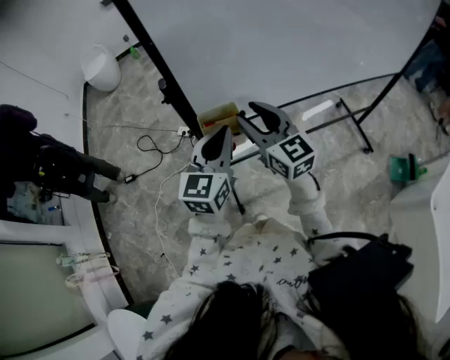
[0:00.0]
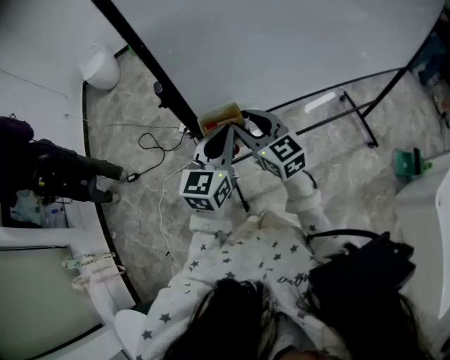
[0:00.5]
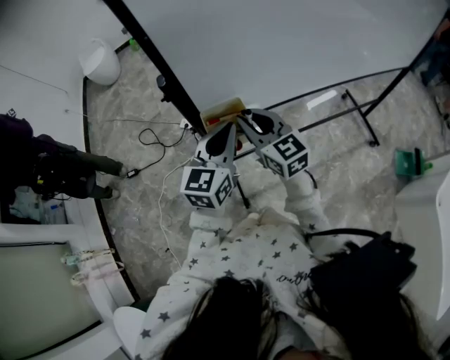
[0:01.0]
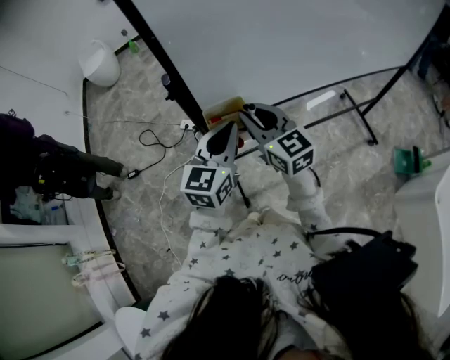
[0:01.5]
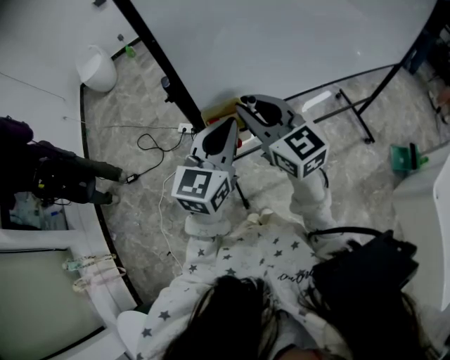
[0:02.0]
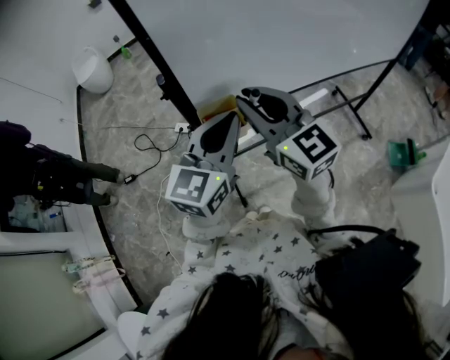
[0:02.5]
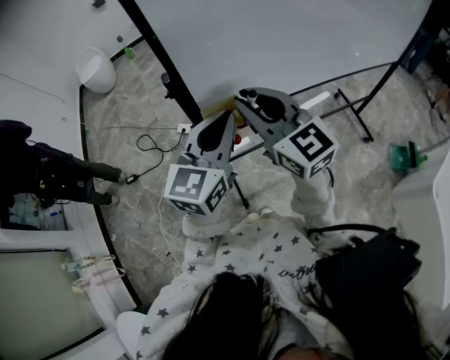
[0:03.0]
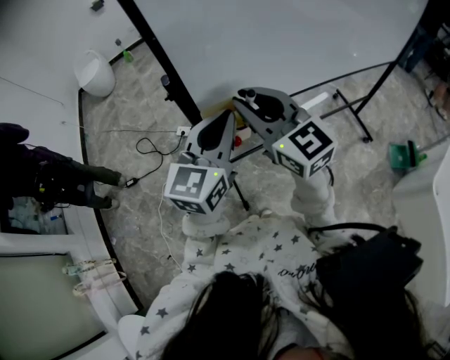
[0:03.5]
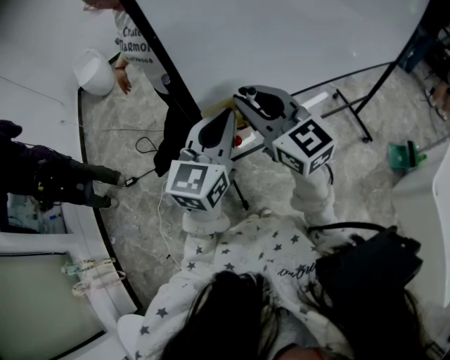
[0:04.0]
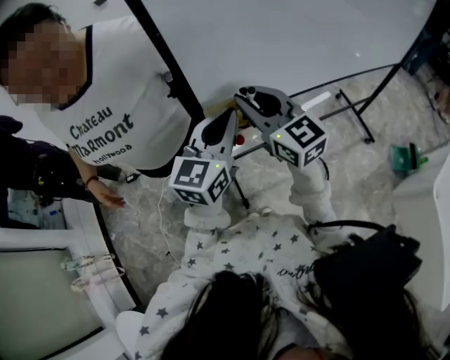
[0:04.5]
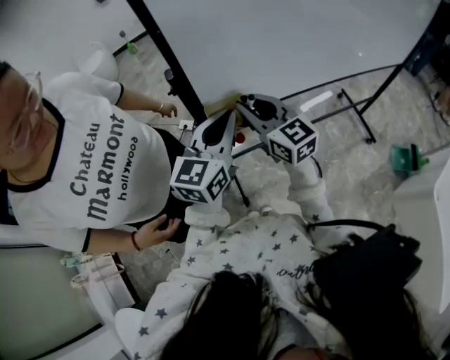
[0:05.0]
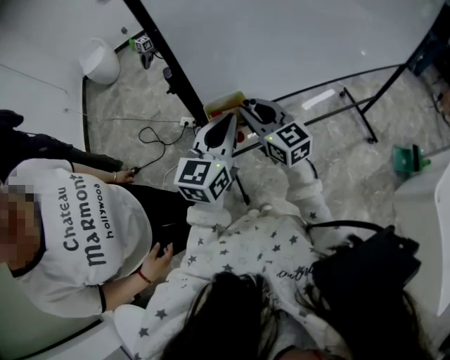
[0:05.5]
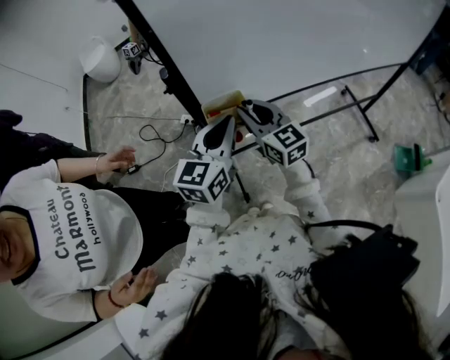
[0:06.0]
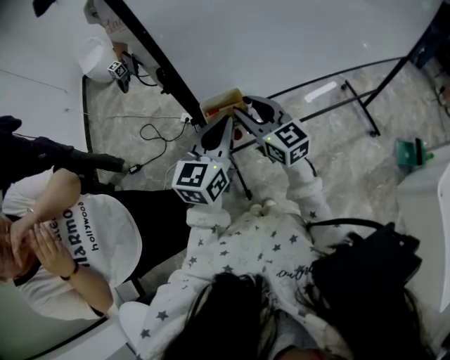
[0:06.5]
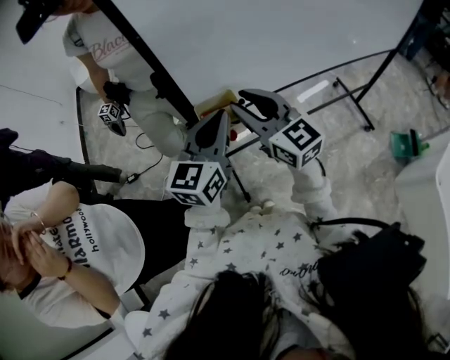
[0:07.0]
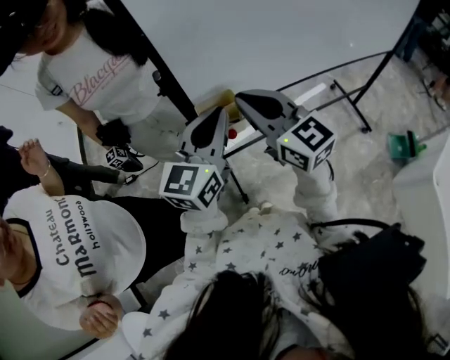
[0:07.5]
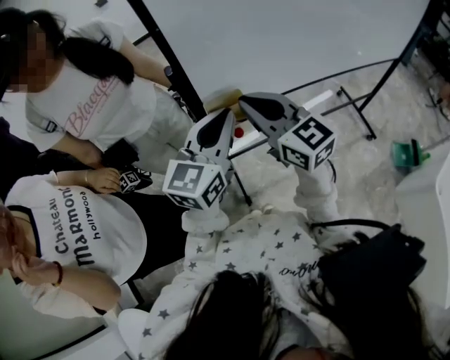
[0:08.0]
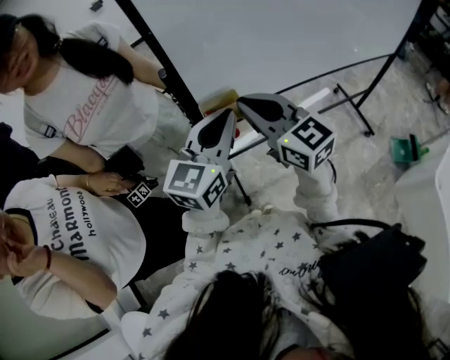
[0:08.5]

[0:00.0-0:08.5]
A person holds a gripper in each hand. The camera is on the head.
0:00.0 to 0:02.0: The right gripper goes approximately 5 cm upward, and closes its fingers.
0:02.0 to 0:04.0: The grippers move only a little.
0:04.0 to 0:06.5: The left gripper heads downward, covering roughly 5 cm; the right gripper moves downward, some 10 cm.
0:06.5 to 0:08.5: The left gripper ends up roughly 5 cm from where it was. Meanwhile the right gripper travels upward by roughly 10 cm, and closes up.

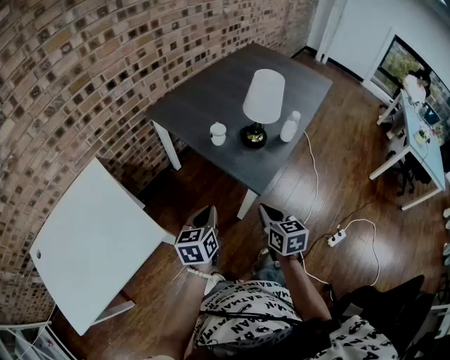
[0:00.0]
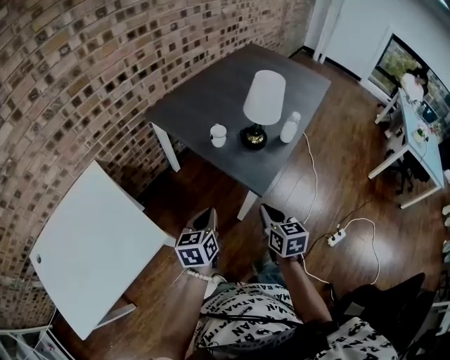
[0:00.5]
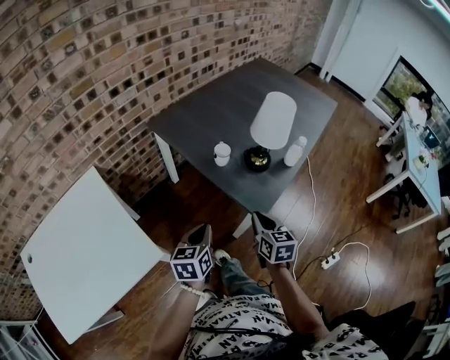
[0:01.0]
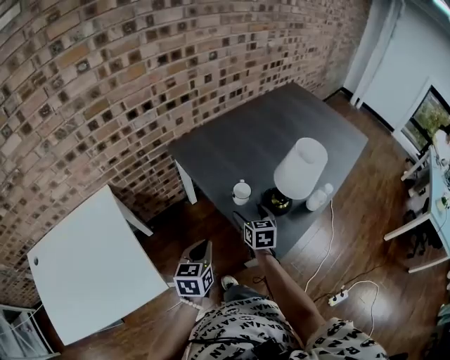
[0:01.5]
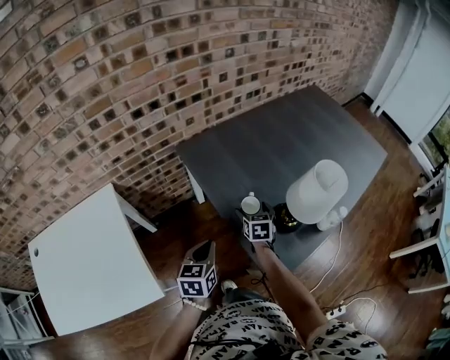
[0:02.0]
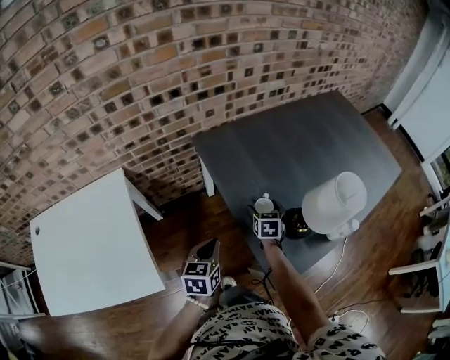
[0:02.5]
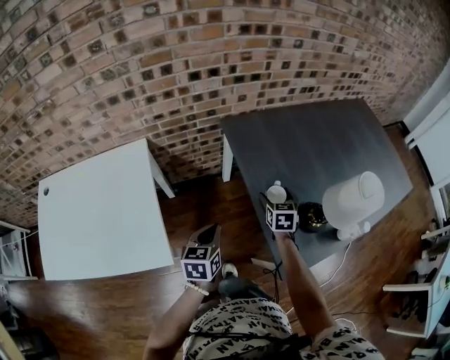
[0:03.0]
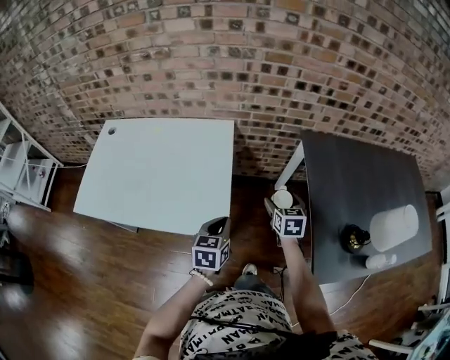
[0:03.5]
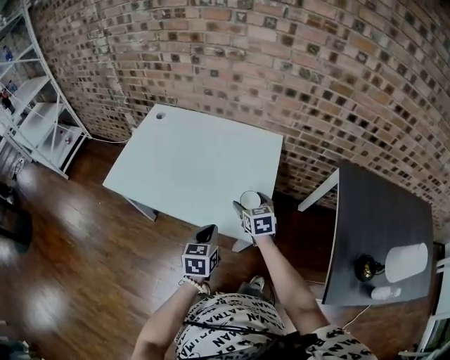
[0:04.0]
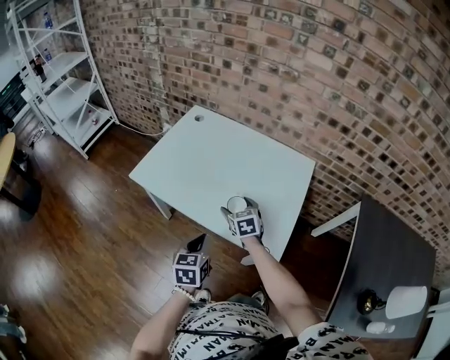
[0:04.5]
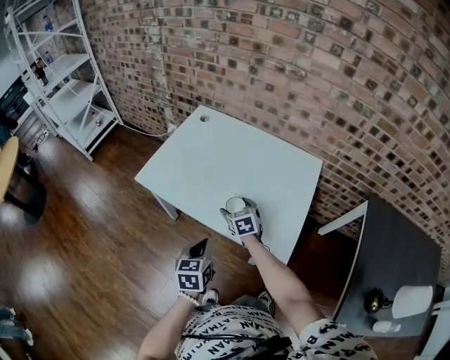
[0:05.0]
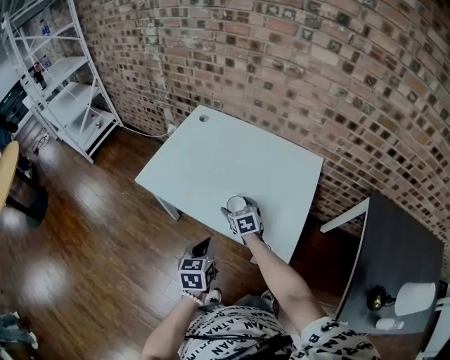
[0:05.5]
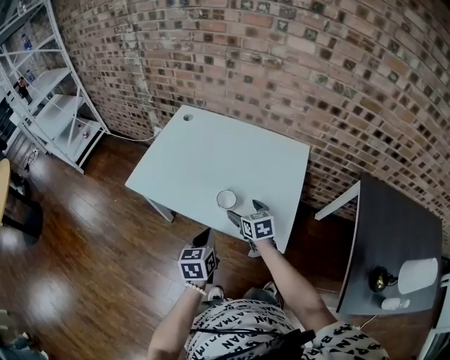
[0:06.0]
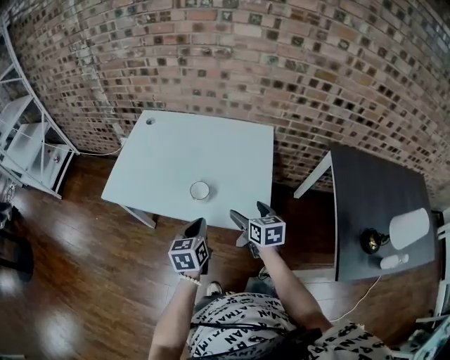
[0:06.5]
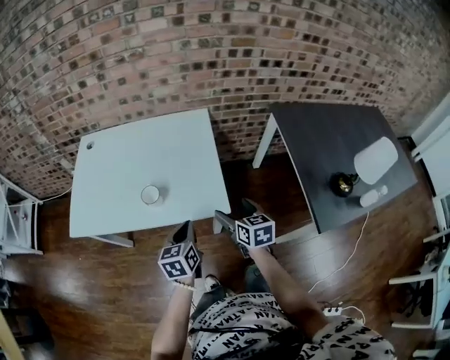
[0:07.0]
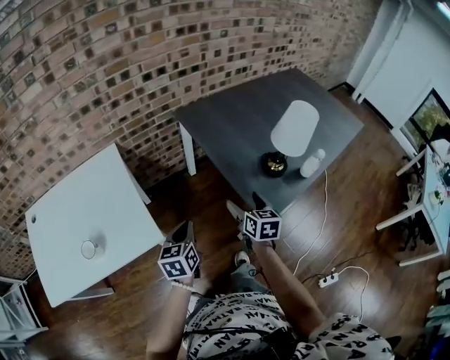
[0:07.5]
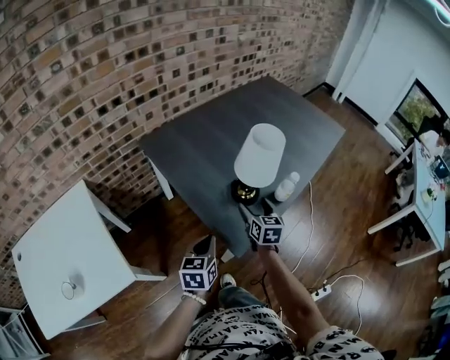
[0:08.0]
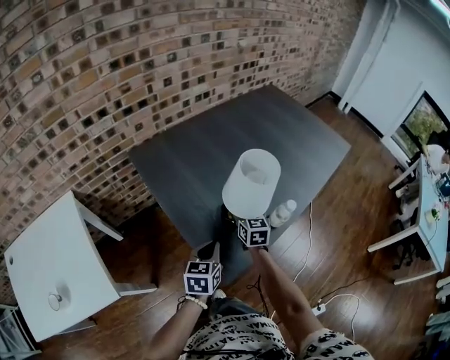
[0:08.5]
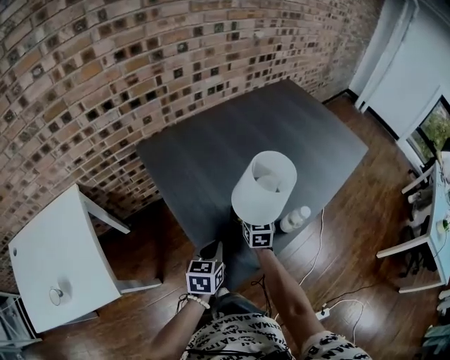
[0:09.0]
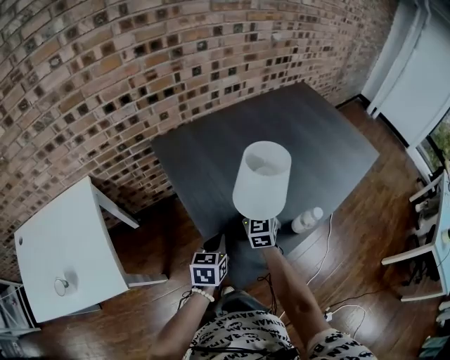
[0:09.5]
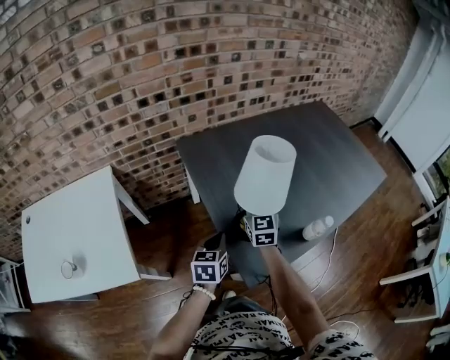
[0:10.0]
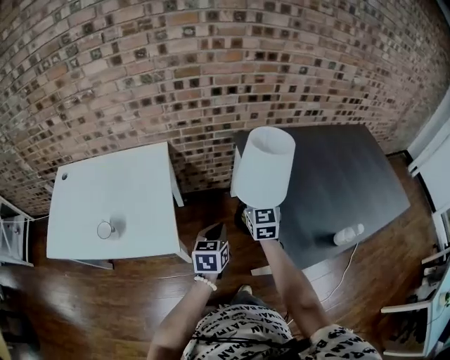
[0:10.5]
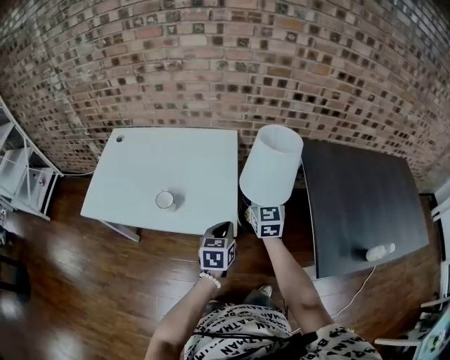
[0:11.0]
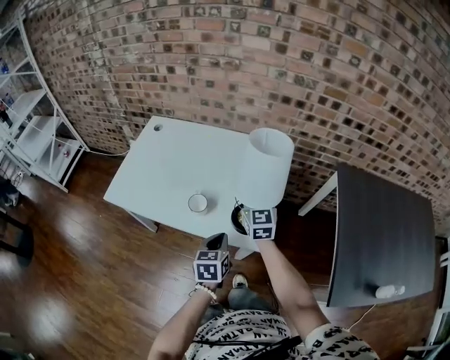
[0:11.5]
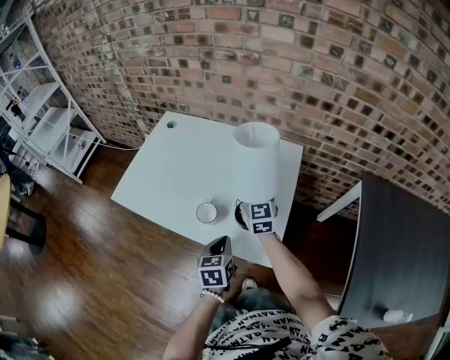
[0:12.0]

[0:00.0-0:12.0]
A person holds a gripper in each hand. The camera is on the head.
0:00.0 to 0:02.0: The left gripper travels forward by roughly 20 cm. Meanwhile the right gripper heads forward, covering approximately 40 cm, and opens up.
0:02.0 to 0:04.0: The pair of grippers is taken approximately 50 cm. The left gripper swivels some 50 degrees; the right gripper changes its angle by about 60 degrees.
0:04.0 to 0:06.0: The two grippers go roughly 15 cm to the left.
0:06.0 to 0:08.0: The pair of grippers is taken approximately 70 cm. The left gripper swivels approximately 70 degrees. Meanwhile the right gripper rotates some 80 degrees.
0:08.0 to 0:10.0: The left gripper travels forward by roughly 10 cm. The right gripper moves to the left, forward and upward, about 20 cm, turns by some 30 degrees, and closes its fingers.
0:10.0 to 0:12.0: The two grippers travel together, some 70 cm. The right gripper turns by approximately 50 degrees; the left gripper swivels approximately 50 degrees.

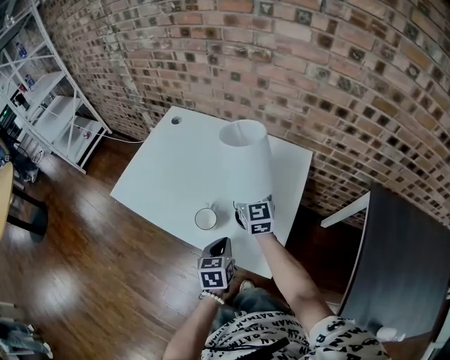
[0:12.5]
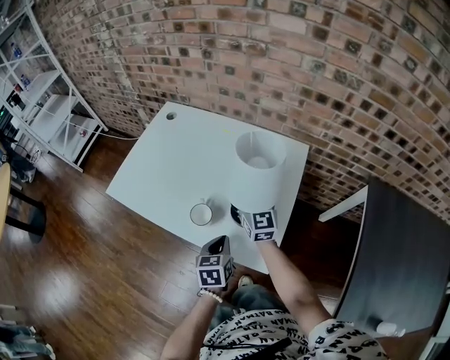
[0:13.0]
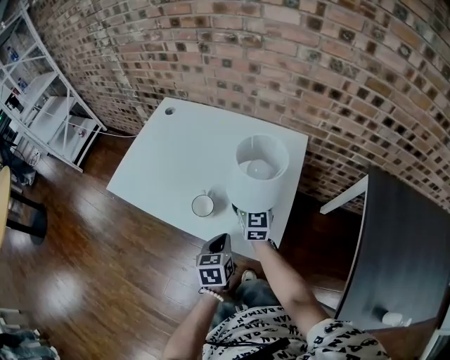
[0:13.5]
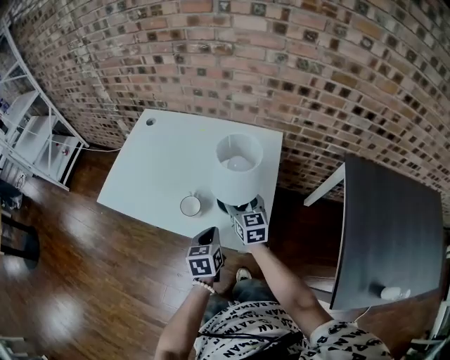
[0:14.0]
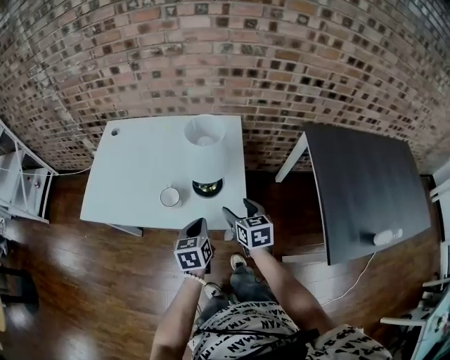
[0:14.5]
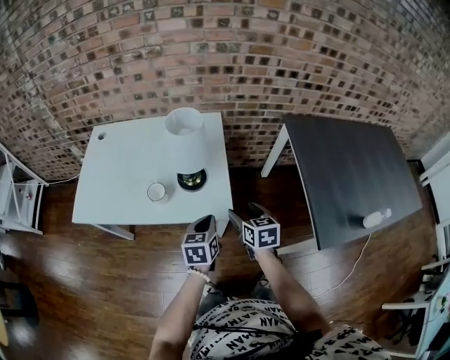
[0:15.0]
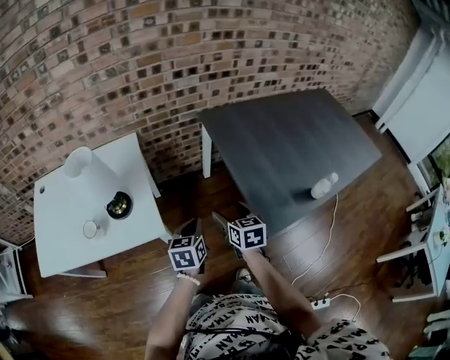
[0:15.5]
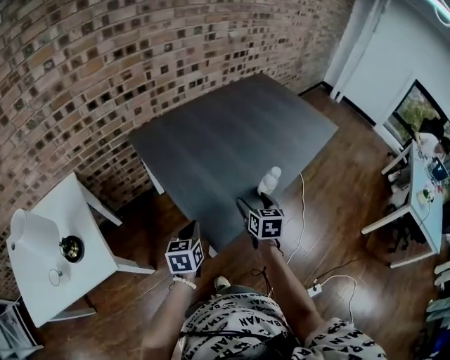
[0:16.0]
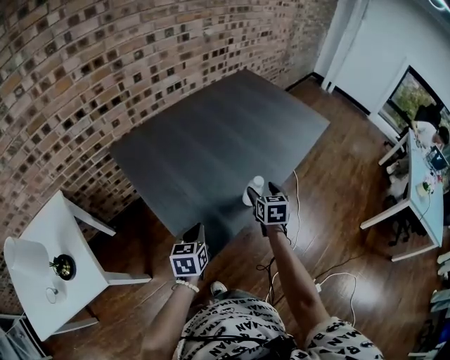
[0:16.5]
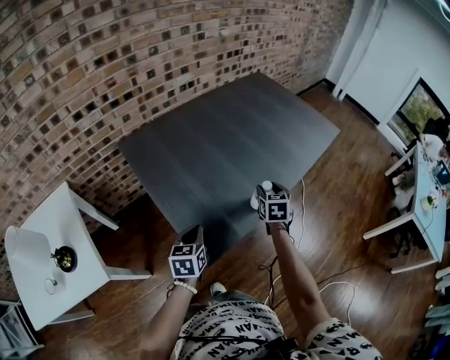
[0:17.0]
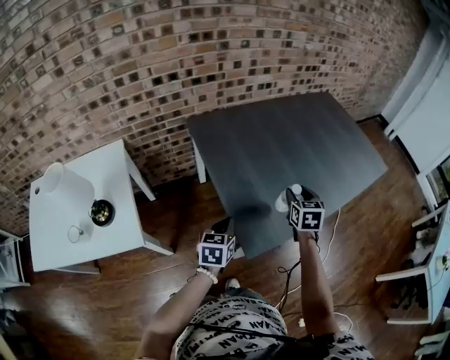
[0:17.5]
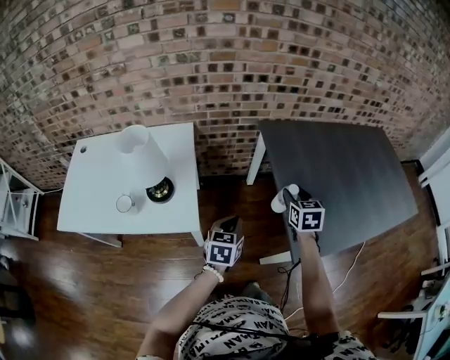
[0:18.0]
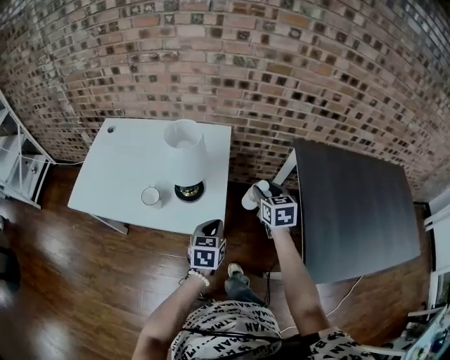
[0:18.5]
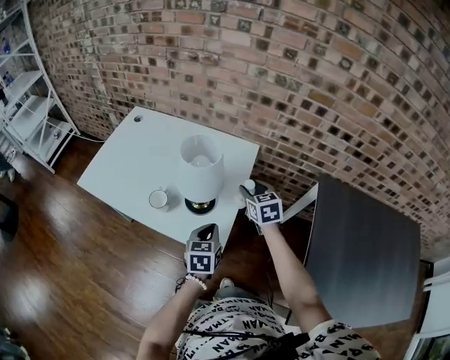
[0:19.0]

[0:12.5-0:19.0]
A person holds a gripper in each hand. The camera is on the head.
0:12.5 to 0:14.5: The right gripper goes roughly 25 cm backward and to the right, points its fingers about 30 degrees further downward, and opens its fingers. The left gripper moves backward, about 5 cm.
0:14.5 to 0:17.0: The two grippers travel together, about 70 cm. The right gripper turns by about 60 degrees; the left gripper swivels roughly 50 degrees.
0:17.0 to 0:19.0: The pair of grippers is taken approximately 70 cm. The left gripper rotates some 60 degrees. The right gripper rotates approximately 80 degrees.
